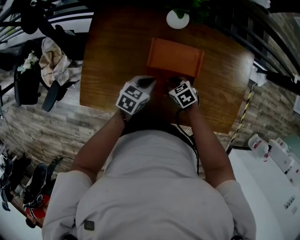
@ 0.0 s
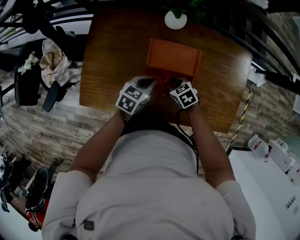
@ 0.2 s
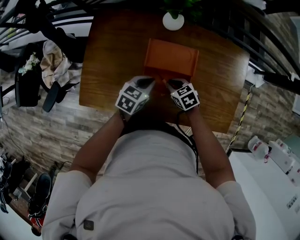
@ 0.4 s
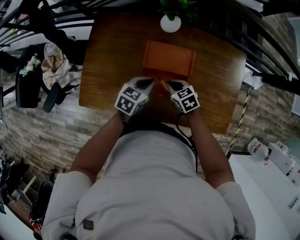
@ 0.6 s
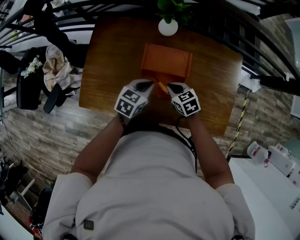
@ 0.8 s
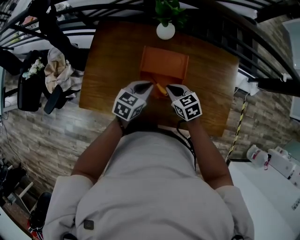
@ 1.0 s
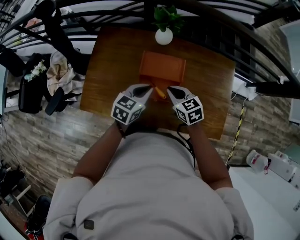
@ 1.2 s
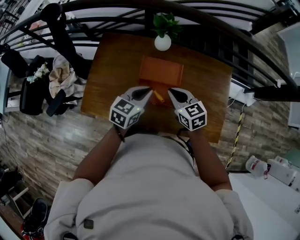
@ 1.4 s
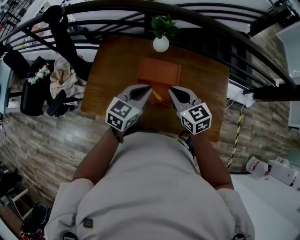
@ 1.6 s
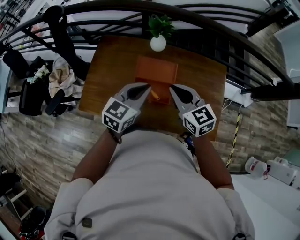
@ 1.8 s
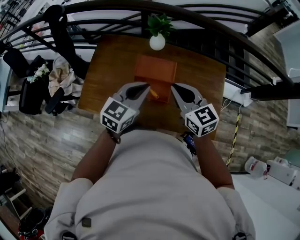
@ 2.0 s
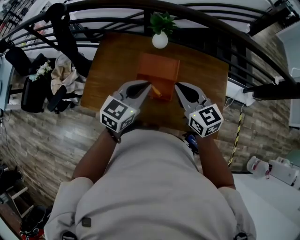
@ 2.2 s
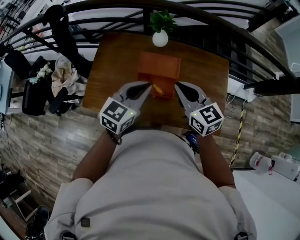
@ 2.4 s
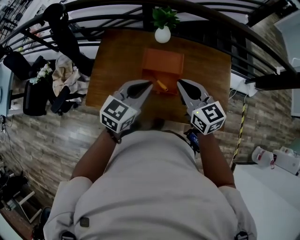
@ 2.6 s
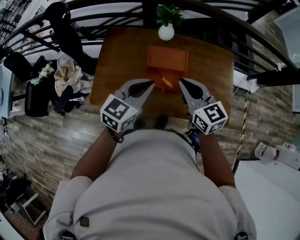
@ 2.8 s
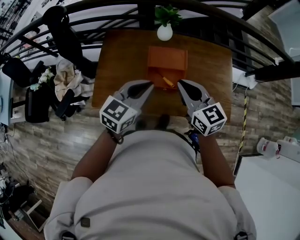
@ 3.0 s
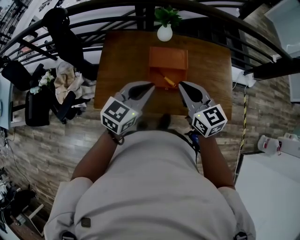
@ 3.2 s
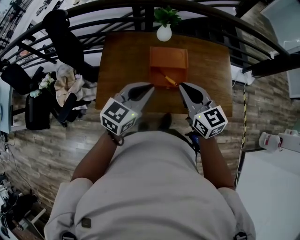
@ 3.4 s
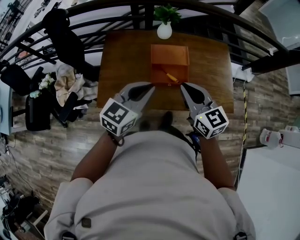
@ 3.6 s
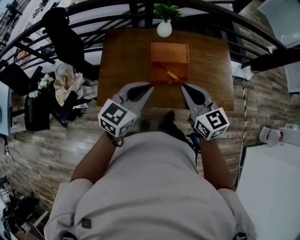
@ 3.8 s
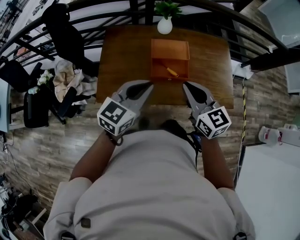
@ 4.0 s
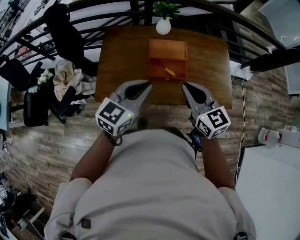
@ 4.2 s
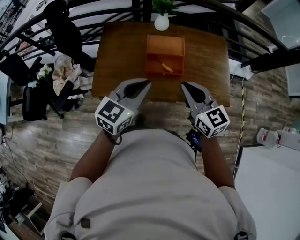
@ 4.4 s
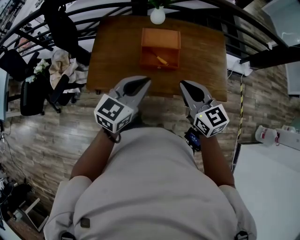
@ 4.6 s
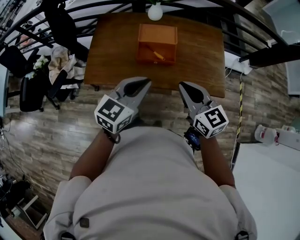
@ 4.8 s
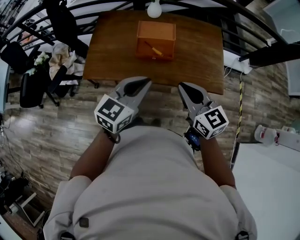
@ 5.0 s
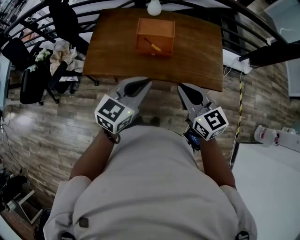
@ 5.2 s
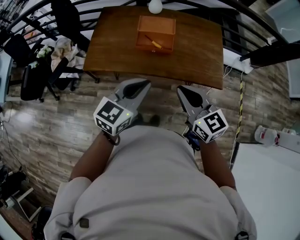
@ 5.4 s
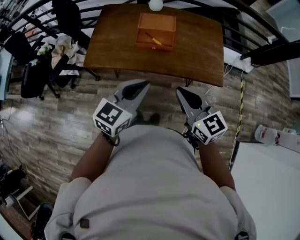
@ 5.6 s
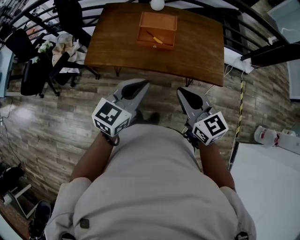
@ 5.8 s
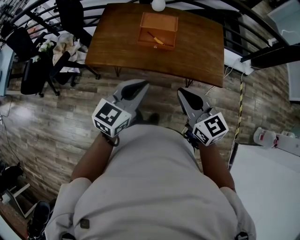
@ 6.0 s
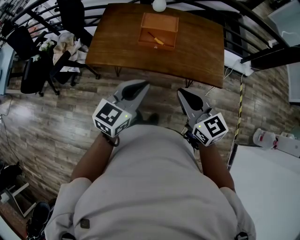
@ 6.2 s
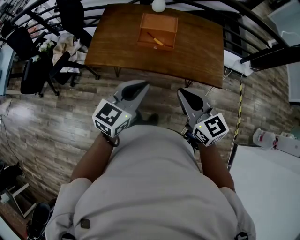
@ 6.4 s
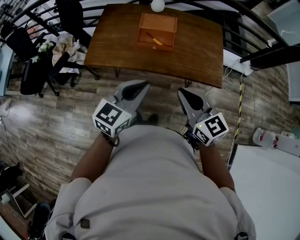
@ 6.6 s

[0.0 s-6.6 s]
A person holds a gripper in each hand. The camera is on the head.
0.0 to 1.6 s: The grippers both shift upward by roughly 25 cm. The left gripper rotates some 30 degrees; the right gripper tilts its fingers about 30 degrees upward, and closes up.
1.6 to 3.2 s: The right gripper is displaced backward, upward and to the left by roughly 15 cm. Meanwhile the left gripper goes roughly 15 cm backward, to the left and upward.
3.2 to 5.0 s: Both grippers travel together backward and to the right, about 25 cm.
5.0 to 6.6 s: The grippers both shift backward by approximately 10 cm.

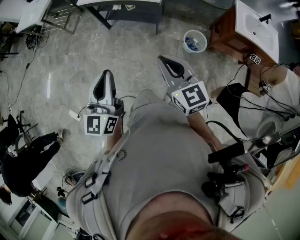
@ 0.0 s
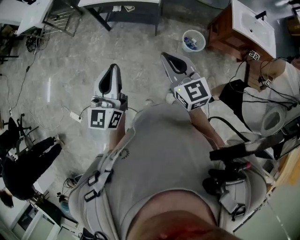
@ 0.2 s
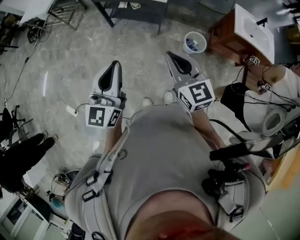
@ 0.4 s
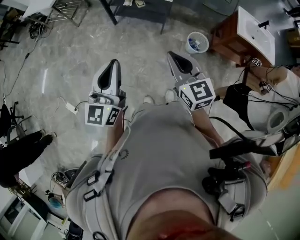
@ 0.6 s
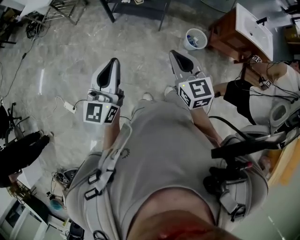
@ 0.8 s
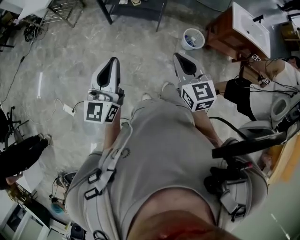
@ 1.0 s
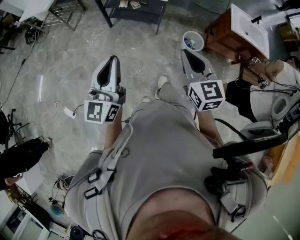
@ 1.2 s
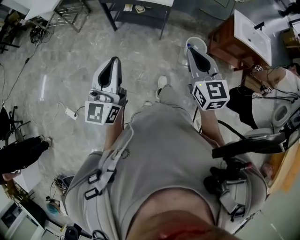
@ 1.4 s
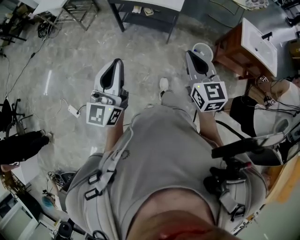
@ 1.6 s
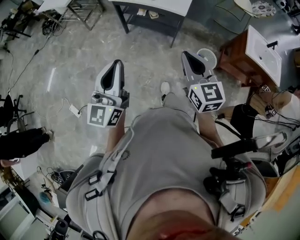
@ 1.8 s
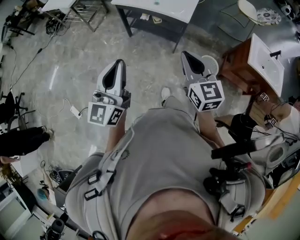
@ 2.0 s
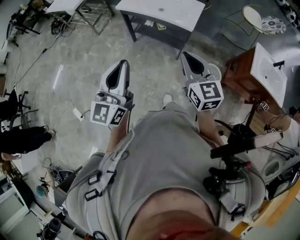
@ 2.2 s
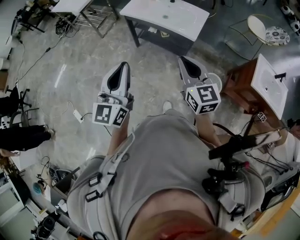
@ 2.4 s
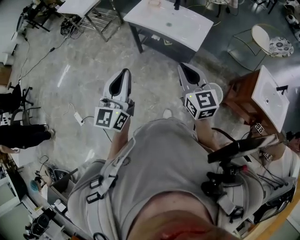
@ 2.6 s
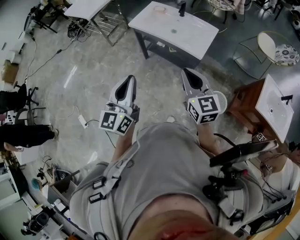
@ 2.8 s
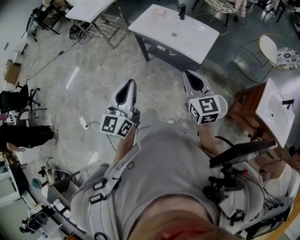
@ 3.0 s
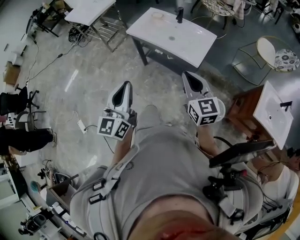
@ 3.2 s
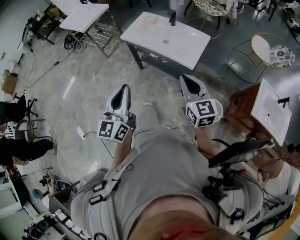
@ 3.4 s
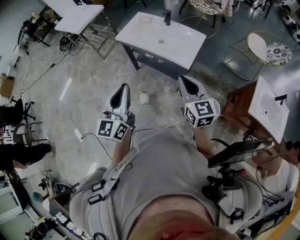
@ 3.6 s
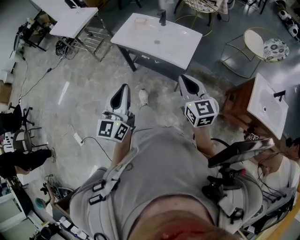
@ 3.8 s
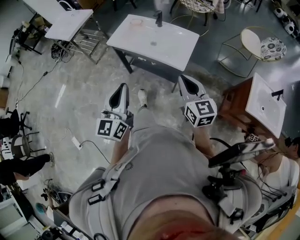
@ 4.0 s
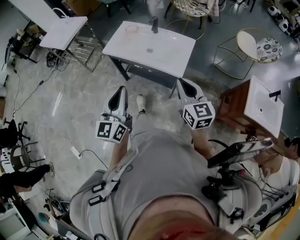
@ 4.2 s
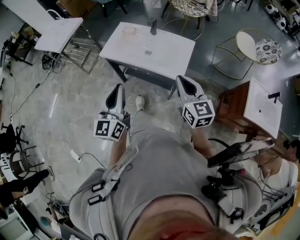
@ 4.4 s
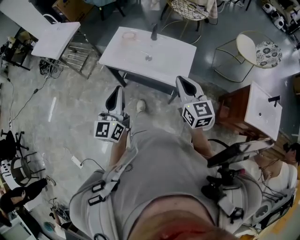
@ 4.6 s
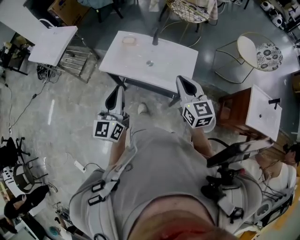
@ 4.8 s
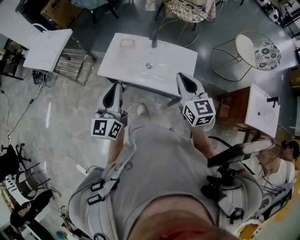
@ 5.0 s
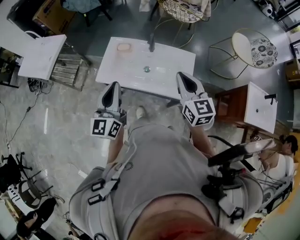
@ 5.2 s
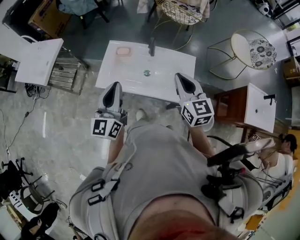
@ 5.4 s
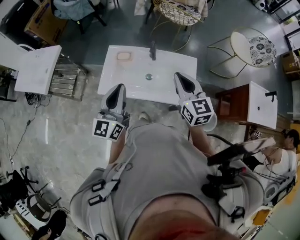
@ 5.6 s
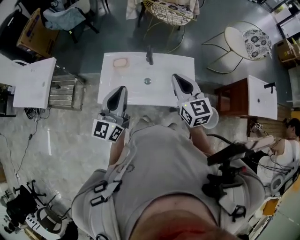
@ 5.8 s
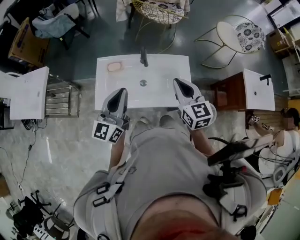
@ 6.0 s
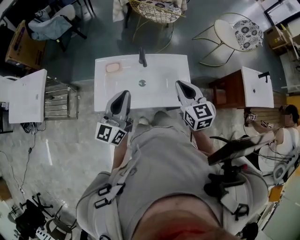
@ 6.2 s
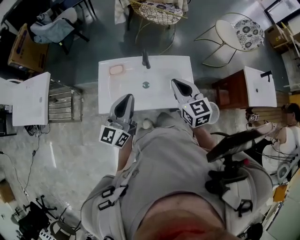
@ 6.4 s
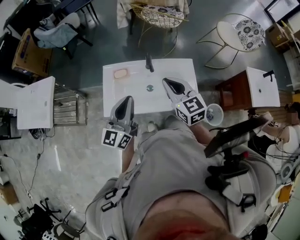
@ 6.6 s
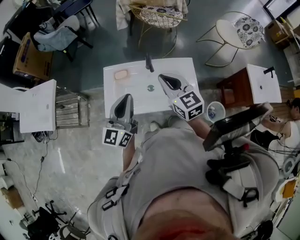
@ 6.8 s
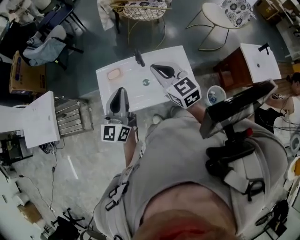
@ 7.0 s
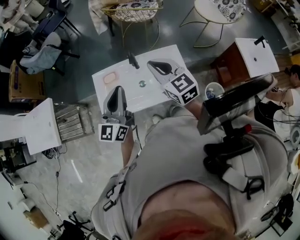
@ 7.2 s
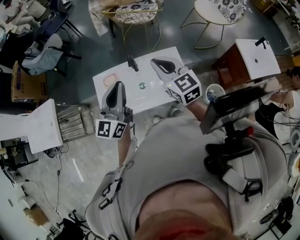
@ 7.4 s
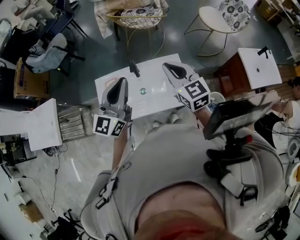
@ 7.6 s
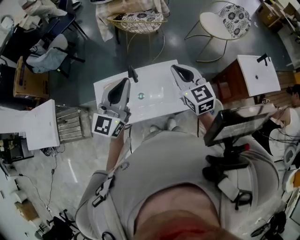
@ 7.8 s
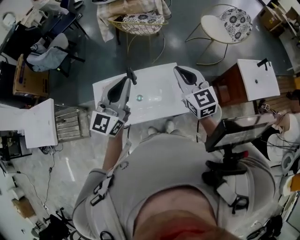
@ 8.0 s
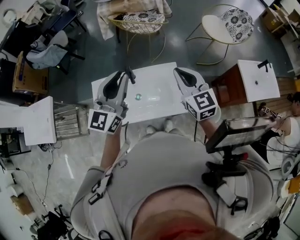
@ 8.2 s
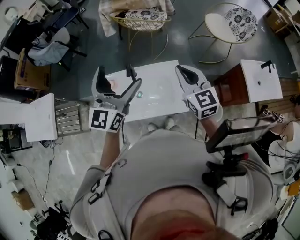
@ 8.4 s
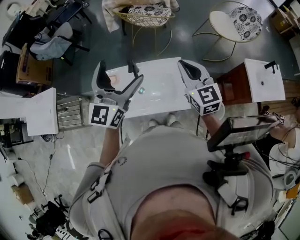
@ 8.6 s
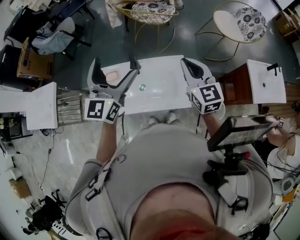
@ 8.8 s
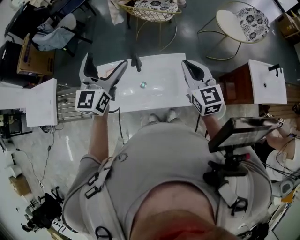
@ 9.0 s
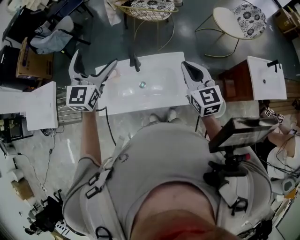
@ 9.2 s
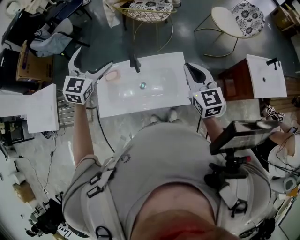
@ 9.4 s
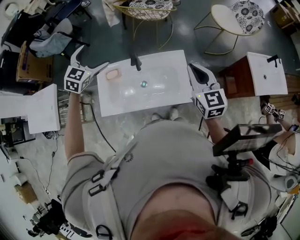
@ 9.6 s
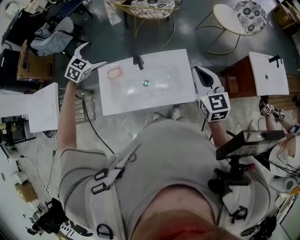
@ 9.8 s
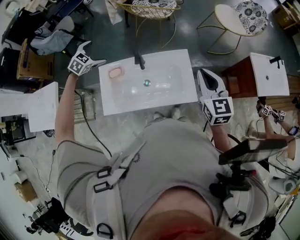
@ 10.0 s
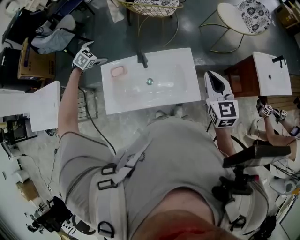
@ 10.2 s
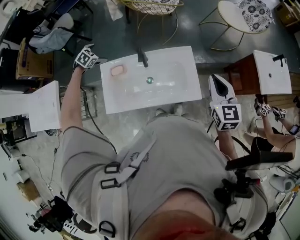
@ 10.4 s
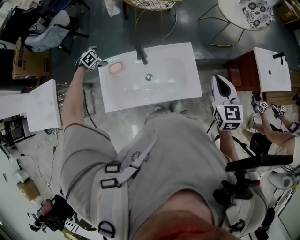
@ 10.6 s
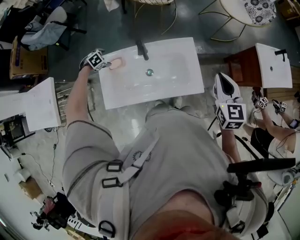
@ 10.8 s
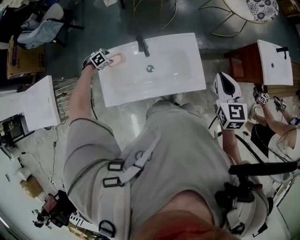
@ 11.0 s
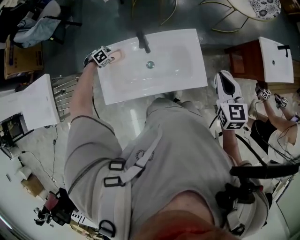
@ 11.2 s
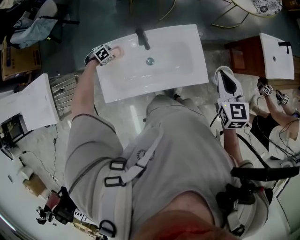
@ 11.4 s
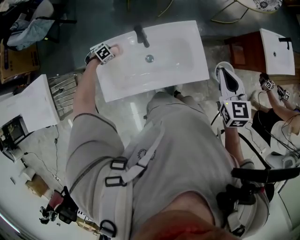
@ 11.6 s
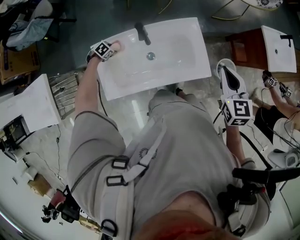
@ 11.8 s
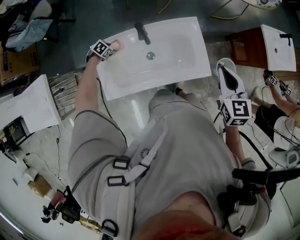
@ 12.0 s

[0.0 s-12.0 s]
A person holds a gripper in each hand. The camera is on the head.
0.0 to 1.6 s: The right gripper travels backward by approximately 5 cm. The left gripper moves to the left and backward, approximately 10 cm.
1.6 to 3.0 s: The two grippers go some 30 cm forward.
3.0 to 4.4 s: The two grippers go some 15 cm forward.
4.4 to 6.0 s: The left gripper changes place by about 35 cm, and rotates about 30 degrees. Meanwhile the right gripper shifts by about 30 cm, and changes its angle by approximately 20 degrees.
6.0 to 7.6 s: The right gripper shifts some 10 cm upward and forward, and goes to the left and returns, approximately 10 cm each way. Meanwhile the left gripper goes approximately 15 cm to the right, upward and forward.
7.6 to 9.0 s: The right gripper heads to the right, covering roughly 5 cm, while the left gripper heads forward, covering roughly 10 cm, and opens up.
9.0 to 10.4 s: The left gripper is displaced downward, to the left and forward by some 40 cm, and angles its fingers downward, by some 70 degrees; the right gripper shifts roughly 10 cm to the right and backward.
10.4 to 12.0 s: The left gripper moves downward, about 25 cm, rotates roughly 20 degrees, and closes its fingers, while the right gripper heads downward, covering roughly 5 cm.

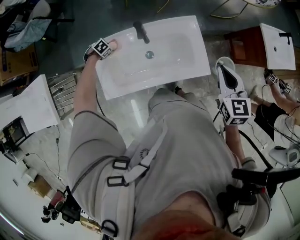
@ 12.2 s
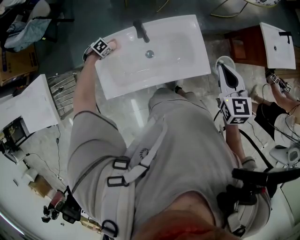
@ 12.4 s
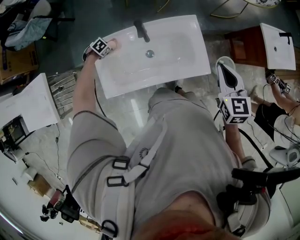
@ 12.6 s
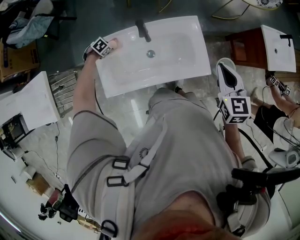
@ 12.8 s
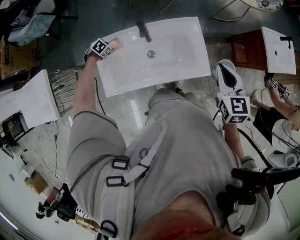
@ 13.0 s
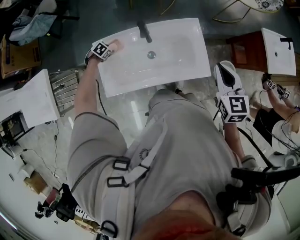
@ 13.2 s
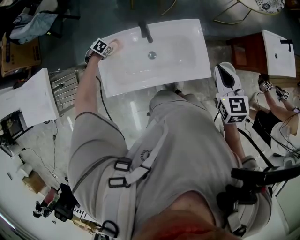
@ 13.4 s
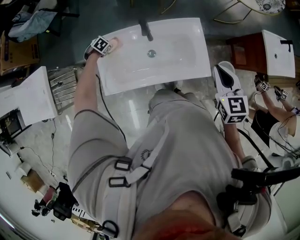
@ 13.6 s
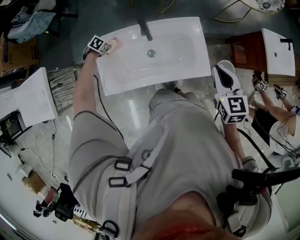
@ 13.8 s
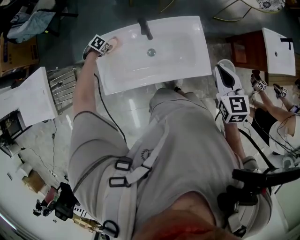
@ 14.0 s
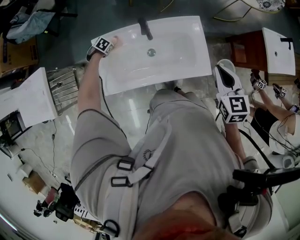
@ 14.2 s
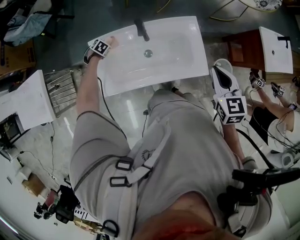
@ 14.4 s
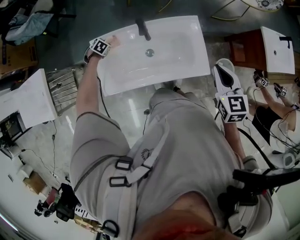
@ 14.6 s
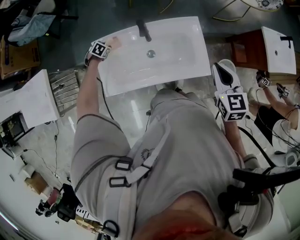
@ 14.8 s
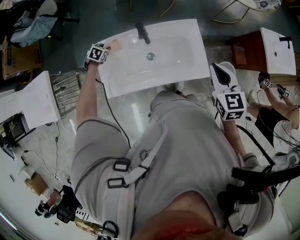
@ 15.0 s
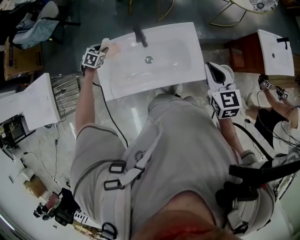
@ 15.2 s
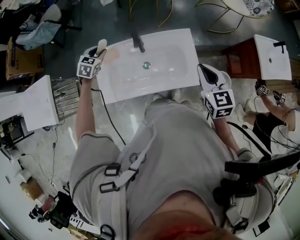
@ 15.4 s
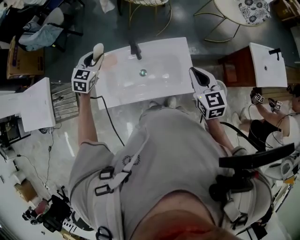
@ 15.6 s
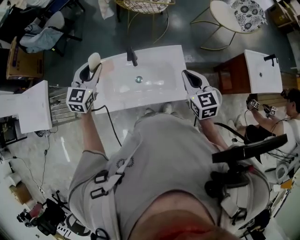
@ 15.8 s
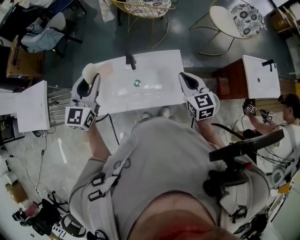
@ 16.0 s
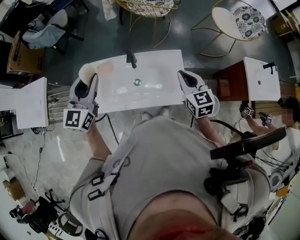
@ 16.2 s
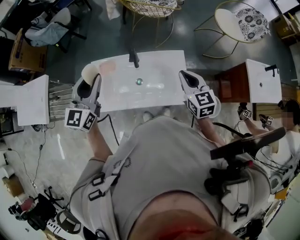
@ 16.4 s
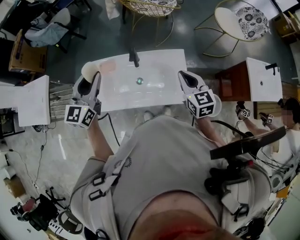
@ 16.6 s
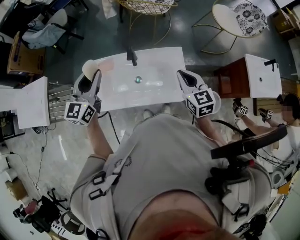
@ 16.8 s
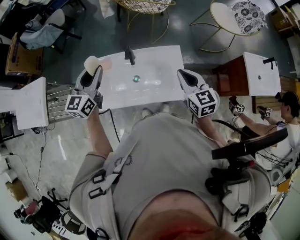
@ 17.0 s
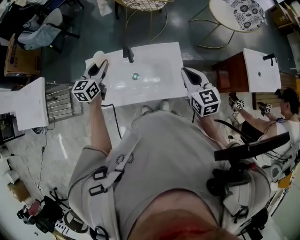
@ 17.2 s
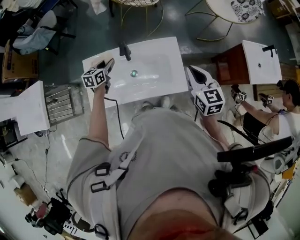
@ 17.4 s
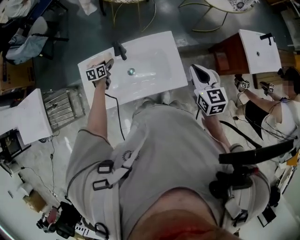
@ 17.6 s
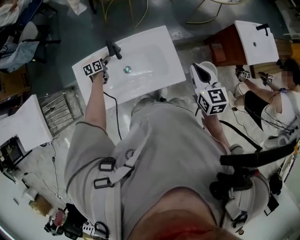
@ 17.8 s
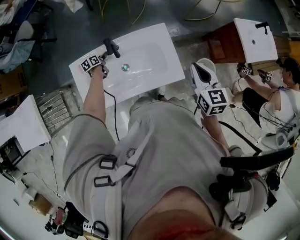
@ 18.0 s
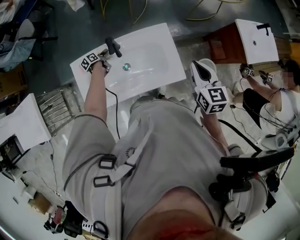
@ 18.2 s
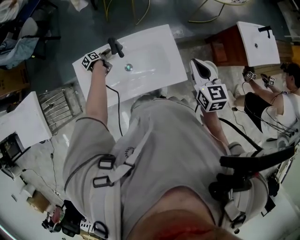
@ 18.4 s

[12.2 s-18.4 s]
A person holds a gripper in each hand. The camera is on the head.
12.2 to 13.8 s: The grippers make only small movements.
13.8 to 15.4 s: The left gripper moves upward, roughly 25 cm, and rotates roughly 30 degrees.
15.4 to 16.8 s: The left gripper goes about 25 cm upward and backward, and angles its fingers upward, by roughly 40 degrees.
16.8 to 18.4 s: The left gripper moves downward, approximately 50 cm, and rolls counterclockwise, seen from behind, by approximately 70 degrees; the right gripper shifts about 10 cm to the right.
